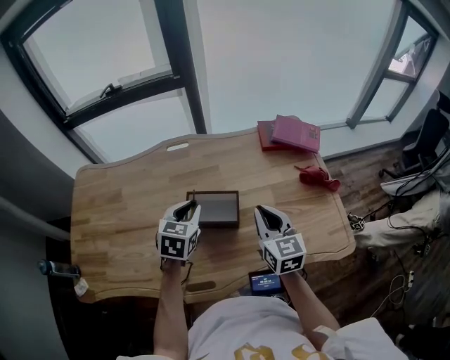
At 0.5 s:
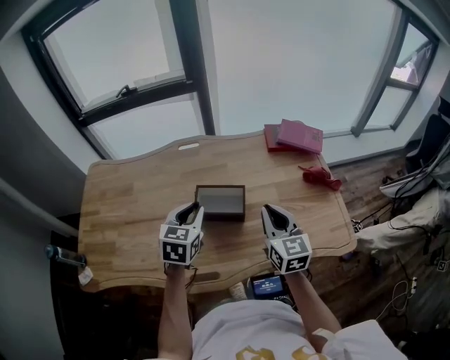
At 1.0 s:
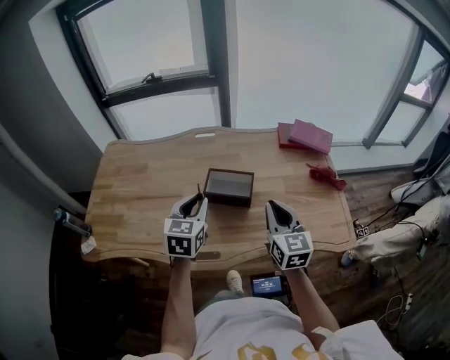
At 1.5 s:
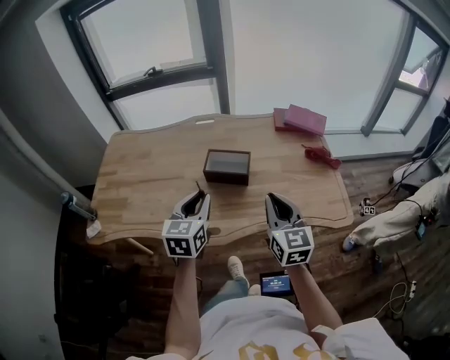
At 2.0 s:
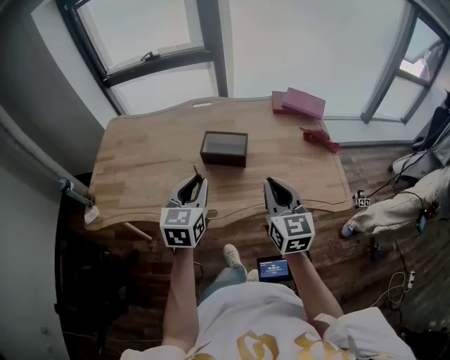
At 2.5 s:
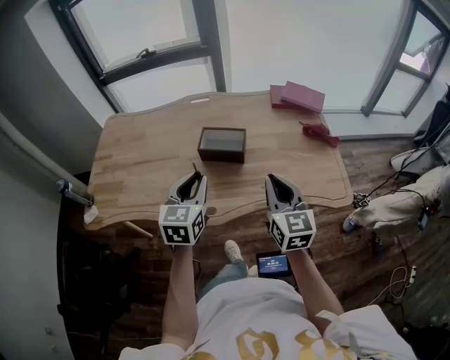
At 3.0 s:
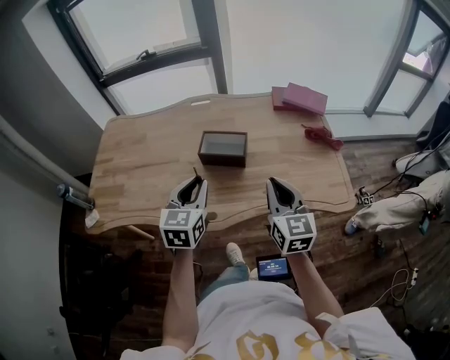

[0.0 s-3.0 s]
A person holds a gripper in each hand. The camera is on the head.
0.0 to 1.5 s: Both grippers move backward, roughly 20 cm. The left gripper swivels about 20 degrees.
1.5 to 3.0 s: The grippers stay close to where they were, moving slightly.

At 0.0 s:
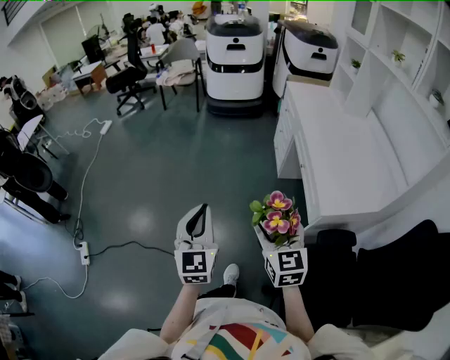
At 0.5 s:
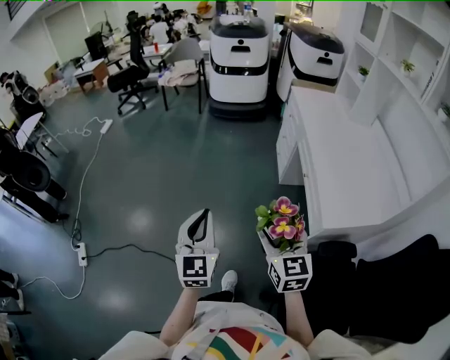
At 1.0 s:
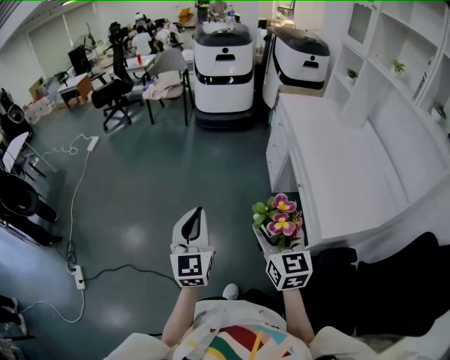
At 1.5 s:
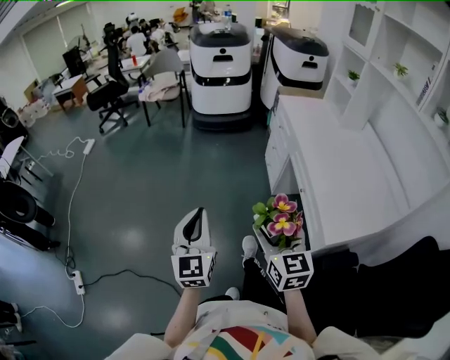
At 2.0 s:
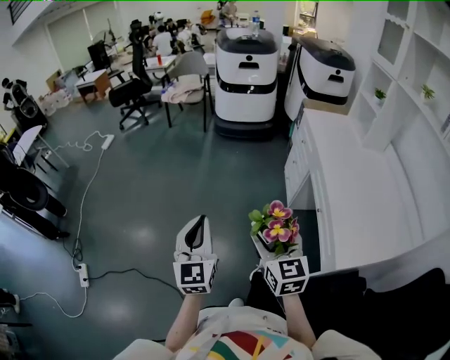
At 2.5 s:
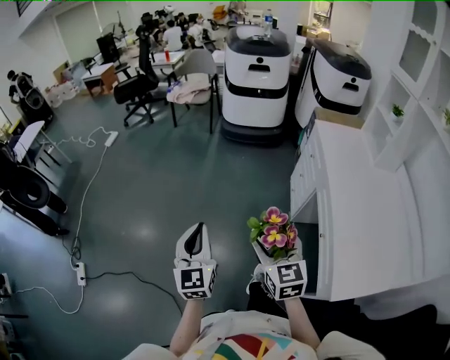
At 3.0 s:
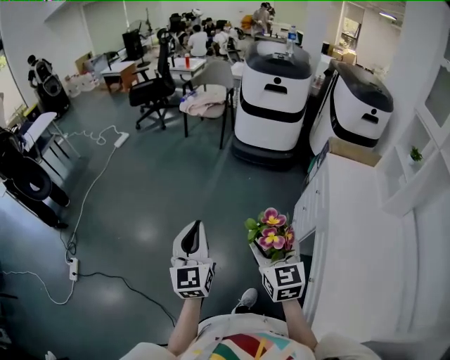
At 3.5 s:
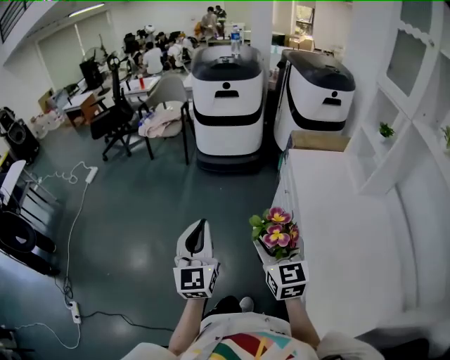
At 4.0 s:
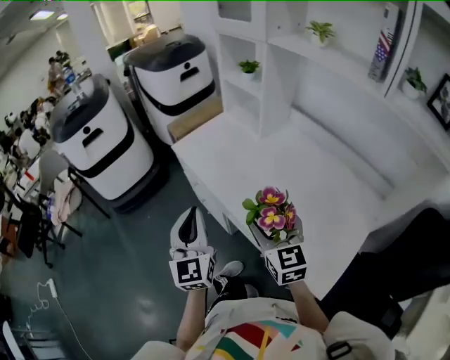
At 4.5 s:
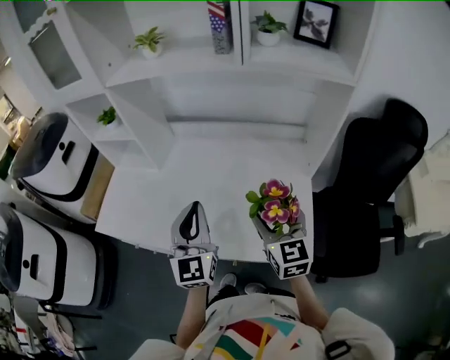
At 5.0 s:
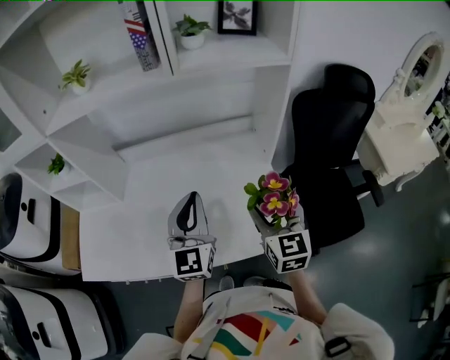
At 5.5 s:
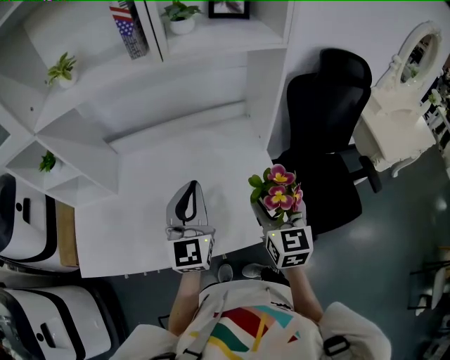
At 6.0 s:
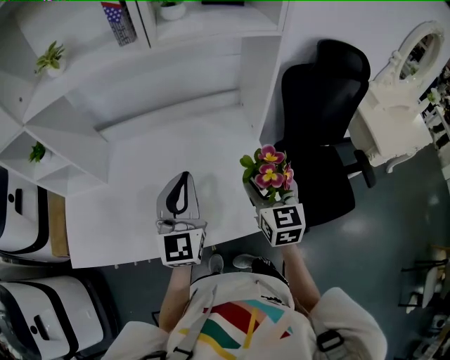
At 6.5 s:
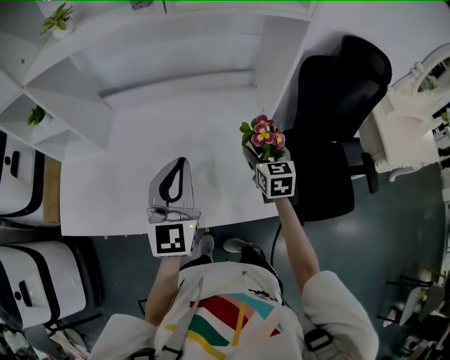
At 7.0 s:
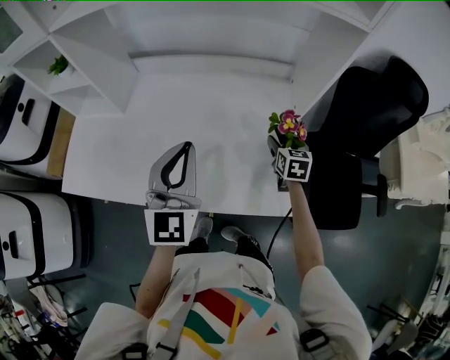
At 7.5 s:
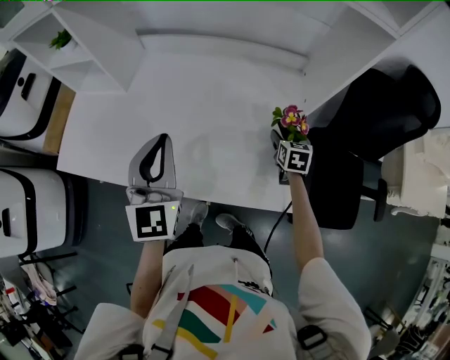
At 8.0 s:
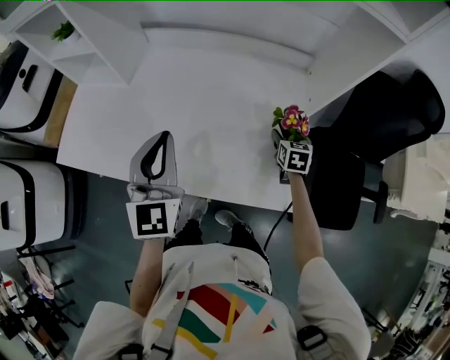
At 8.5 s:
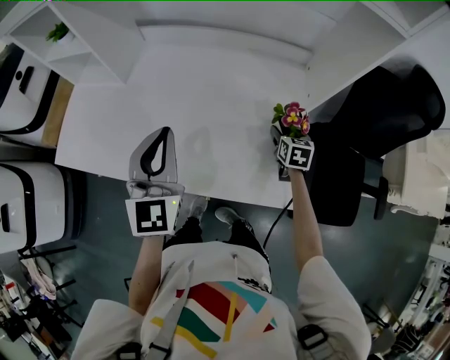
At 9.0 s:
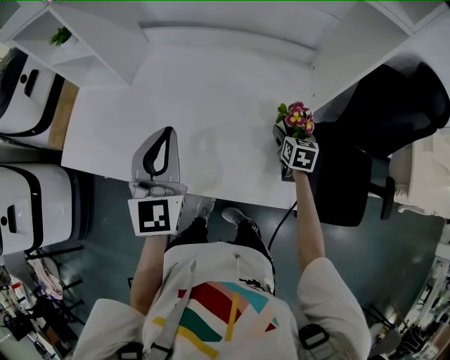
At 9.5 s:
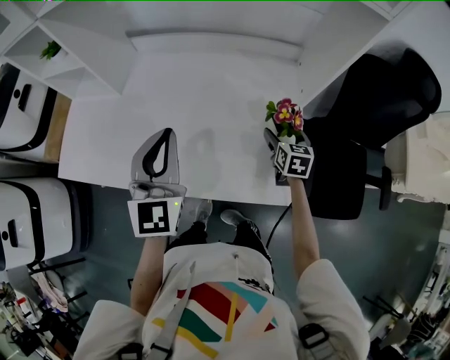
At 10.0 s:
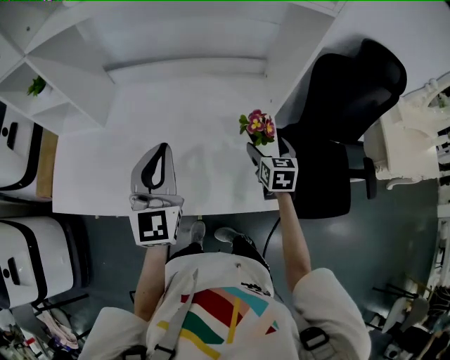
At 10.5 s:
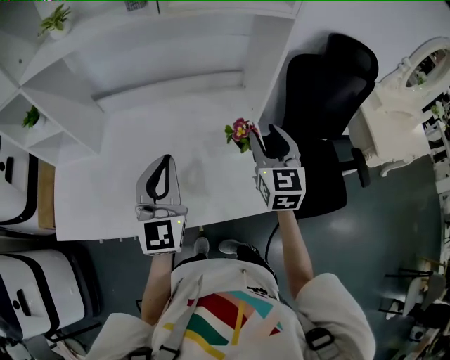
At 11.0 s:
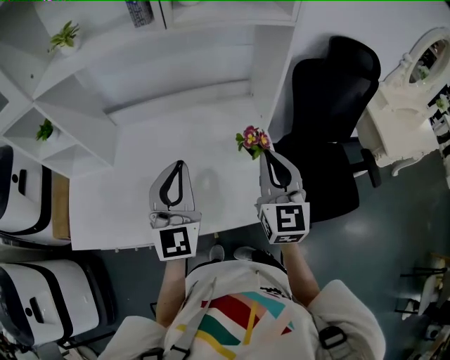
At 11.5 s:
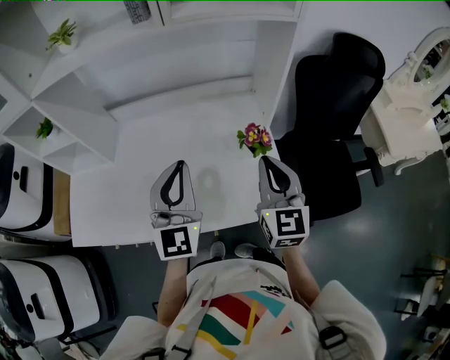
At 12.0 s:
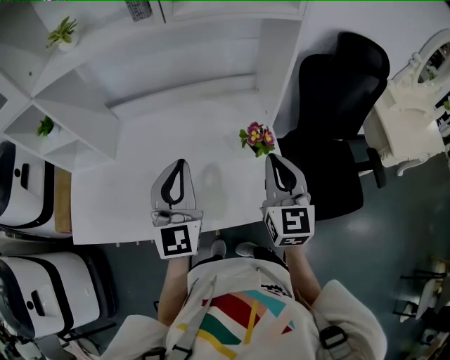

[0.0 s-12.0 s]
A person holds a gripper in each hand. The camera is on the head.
0.0 to 2.0 s: Both grippers move forward, some 20 cm.
2.0 to 4.0 s: The pair of grippers is taken about 50 cm. The right gripper changes its angle by some 40 degrees; the left gripper rotates about 40 degrees.
4.0 to 6.0 s: The left gripper moves about 35 cm, and swivels approximately 70 degrees. Meanwhile the right gripper shifts by some 30 cm, and rotates some 70 degrees.
6.0 to 8.0 s: The right gripper goes about 25 cm downward and forward, and changes its angle by roughly 30 degrees. The left gripper moves to the left, approximately 10 cm, and swivels about 20 degrees.
8.0 to 10.0 s: The right gripper heads upward and backward, covering approximately 10 cm. Meanwhile the left gripper is displaced to the right by approximately 5 cm.
10.0 to 12.0 s: The right gripper goes about 20 cm upward and backward, changes its angle by about 30 degrees, and closes its fingers.

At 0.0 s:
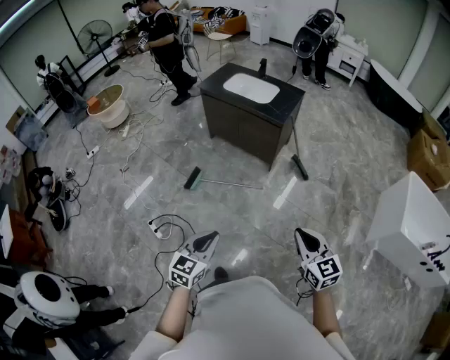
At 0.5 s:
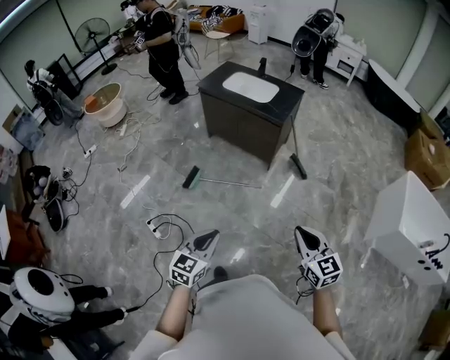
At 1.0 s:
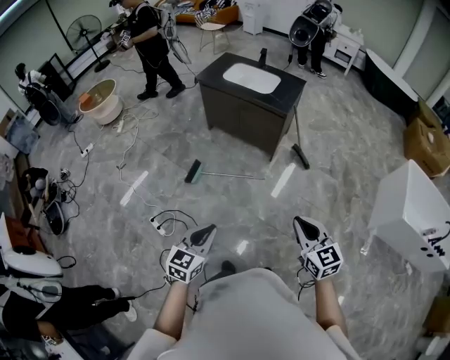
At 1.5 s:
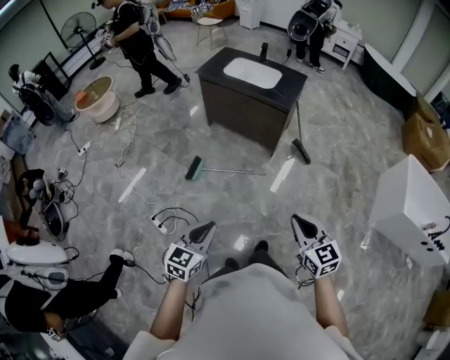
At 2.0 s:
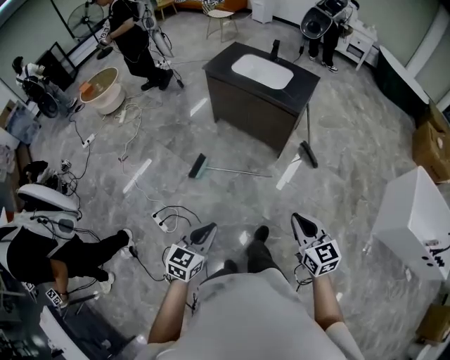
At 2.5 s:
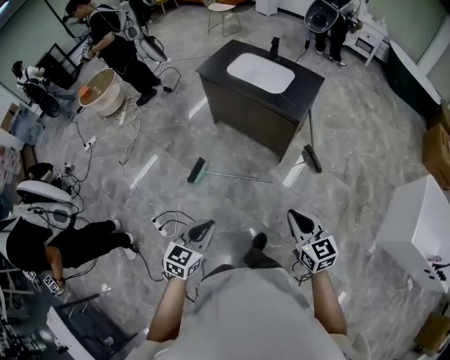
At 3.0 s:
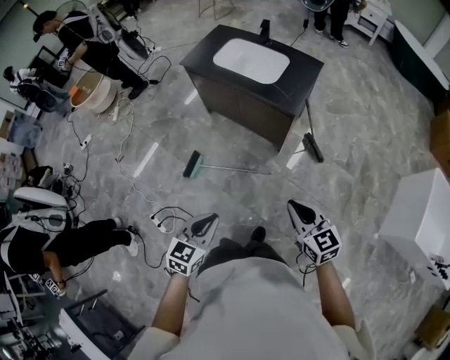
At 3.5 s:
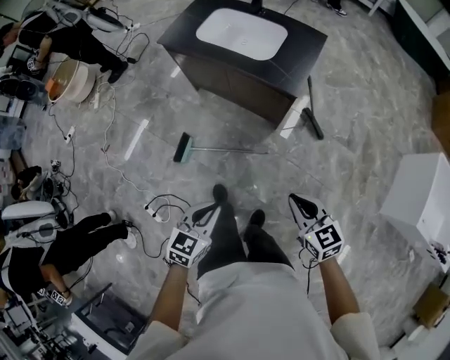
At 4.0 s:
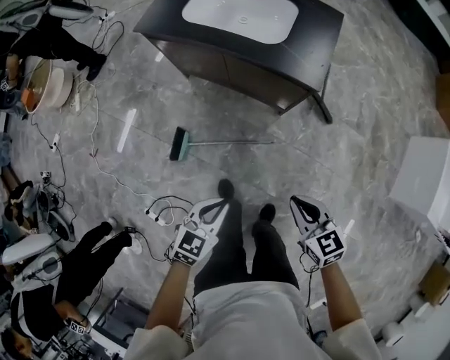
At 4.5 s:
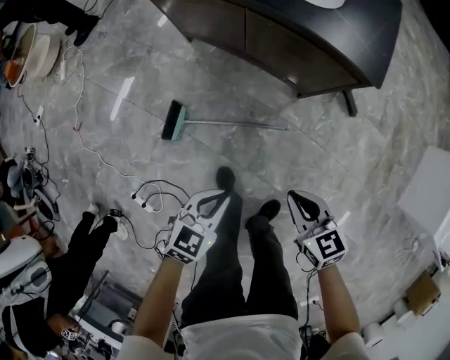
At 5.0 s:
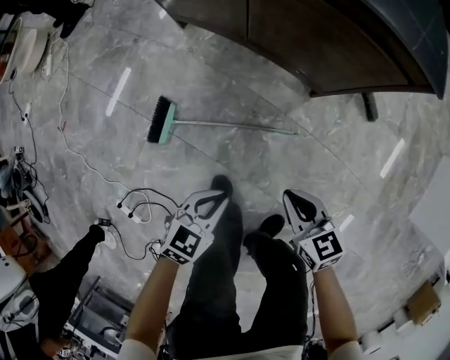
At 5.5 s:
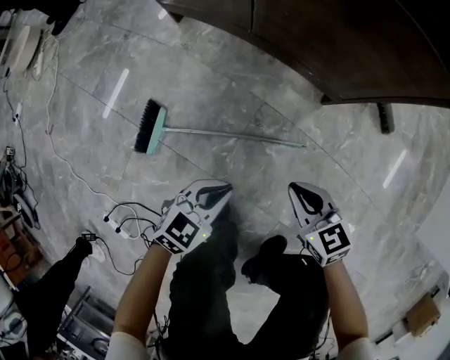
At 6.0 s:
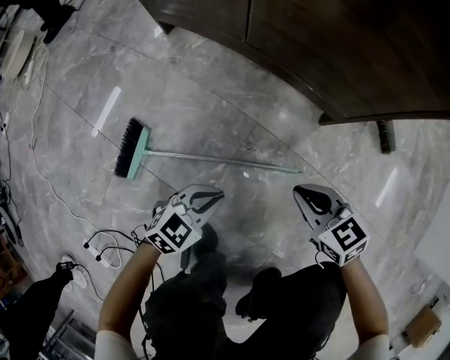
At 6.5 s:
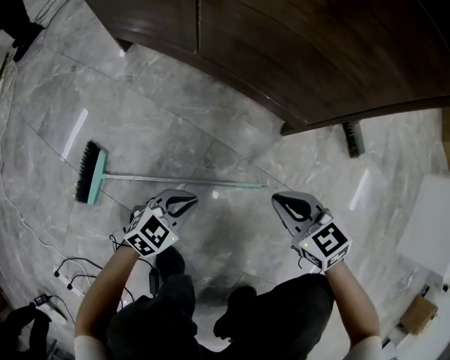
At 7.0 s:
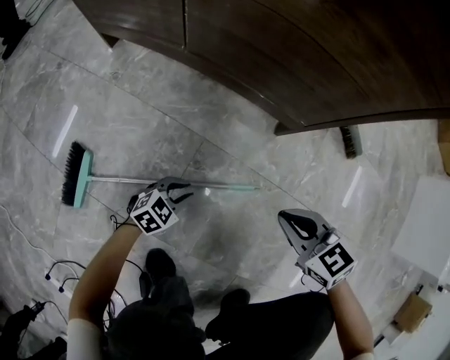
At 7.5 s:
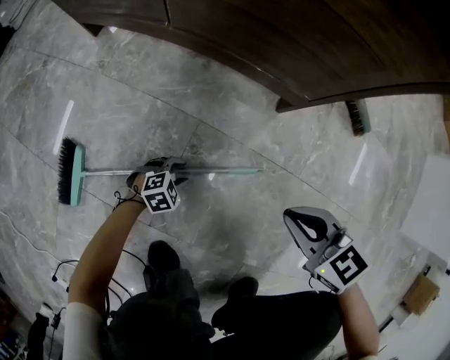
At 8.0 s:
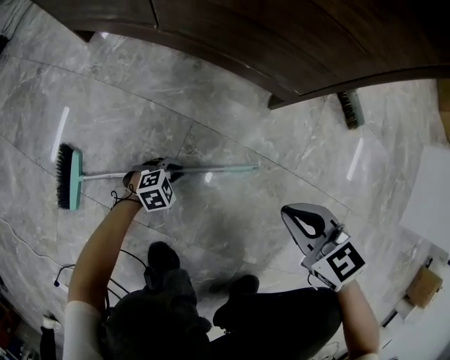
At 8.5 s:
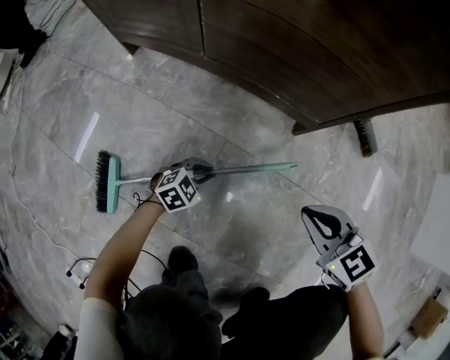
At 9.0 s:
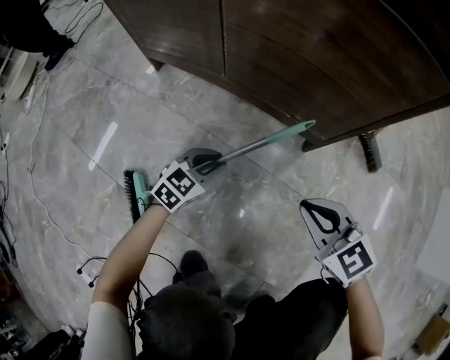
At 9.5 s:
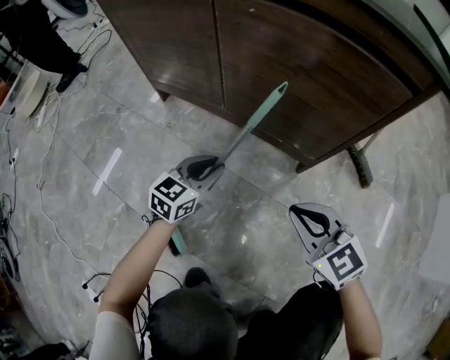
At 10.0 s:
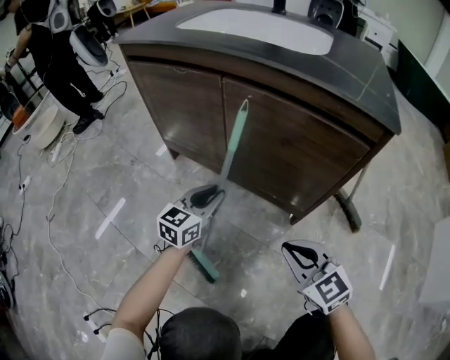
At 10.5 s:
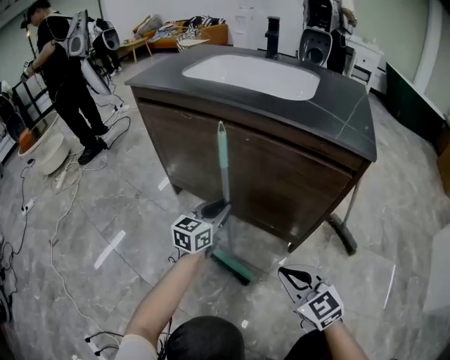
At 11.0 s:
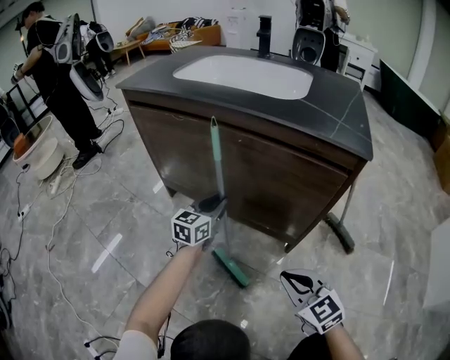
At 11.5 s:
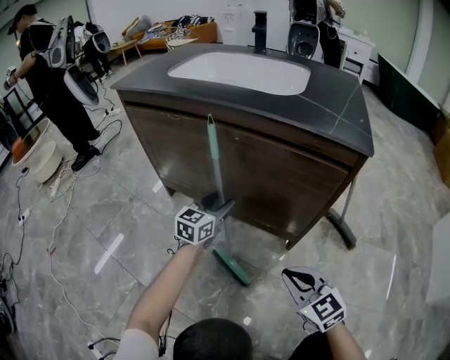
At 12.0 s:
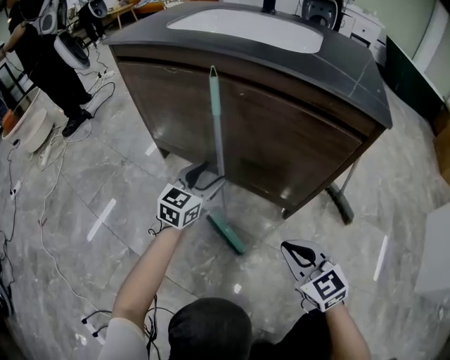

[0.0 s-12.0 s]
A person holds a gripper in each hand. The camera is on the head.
0.0 to 2.0 s: Both grippers move to the left and forward, roughly 15 cm.
2.0 to 4.0 s: Both grippers travel together forward and downward, some 50 cm. The left gripper turns by roughly 20 degrees.
4.0 to 6.0 s: The grippers both shift downward by approximately 60 cm.
6.0 to 8.0 s: The left gripper is displaced downward by approximately 25 cm, rotates some 40 degrees, and opens, then closes once more. The right gripper moves about 10 cm.
8.0 to 10.0 s: The right gripper shifts about 20 cm upward, and turns by about 30 degrees. The left gripper shifts about 50 cm upward, and points its fingers about 50 degrees further upward.
10.0 to 12.0 s: The left gripper opens up.
